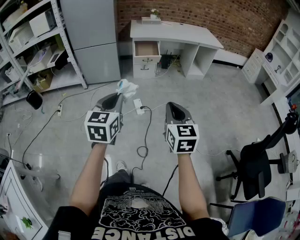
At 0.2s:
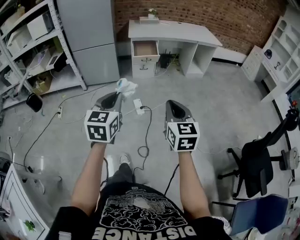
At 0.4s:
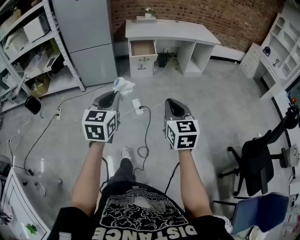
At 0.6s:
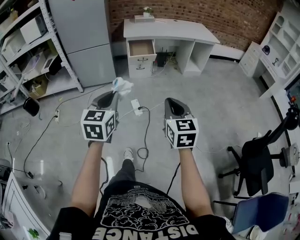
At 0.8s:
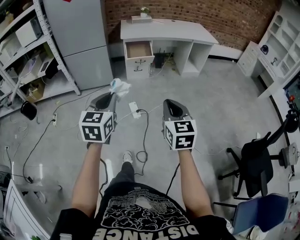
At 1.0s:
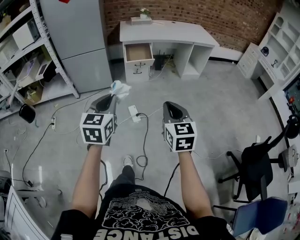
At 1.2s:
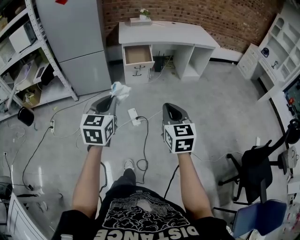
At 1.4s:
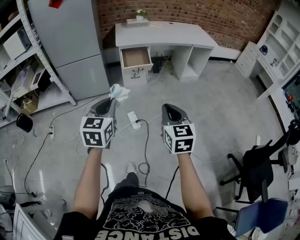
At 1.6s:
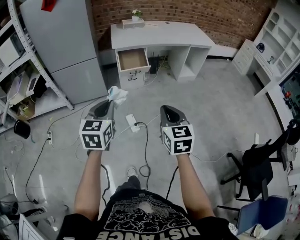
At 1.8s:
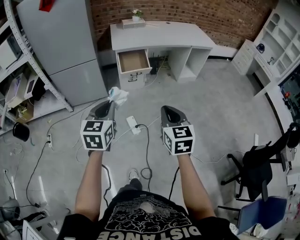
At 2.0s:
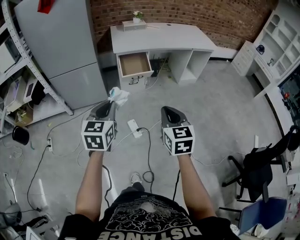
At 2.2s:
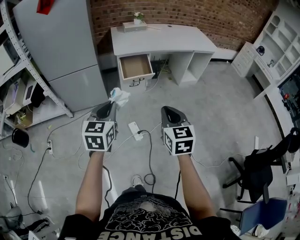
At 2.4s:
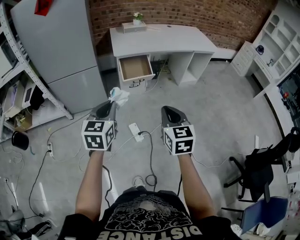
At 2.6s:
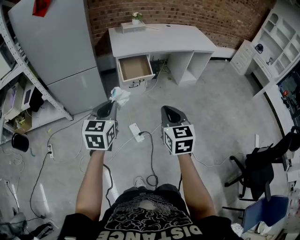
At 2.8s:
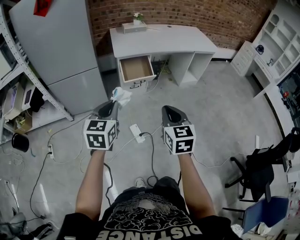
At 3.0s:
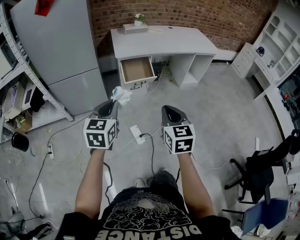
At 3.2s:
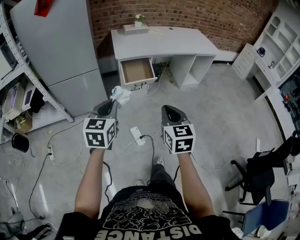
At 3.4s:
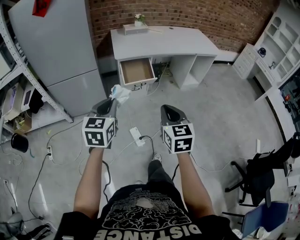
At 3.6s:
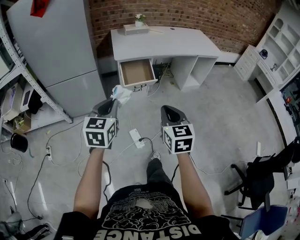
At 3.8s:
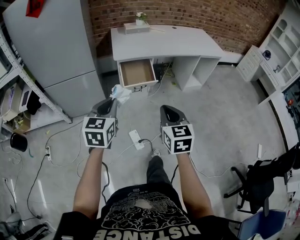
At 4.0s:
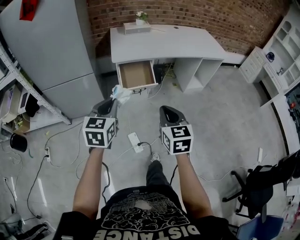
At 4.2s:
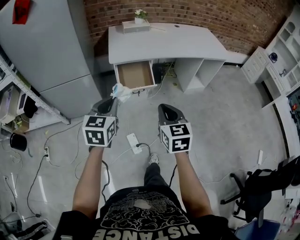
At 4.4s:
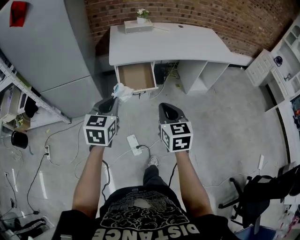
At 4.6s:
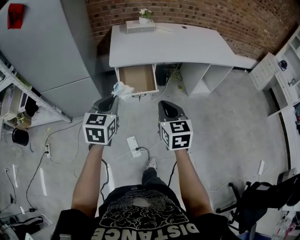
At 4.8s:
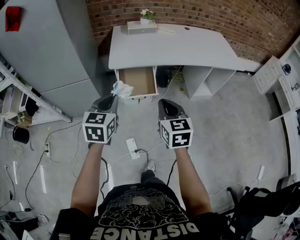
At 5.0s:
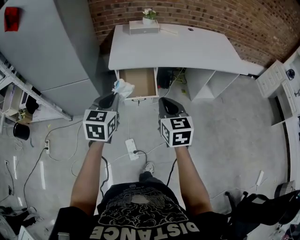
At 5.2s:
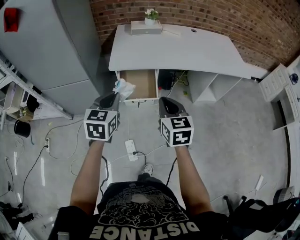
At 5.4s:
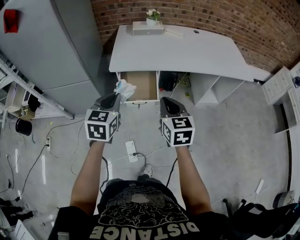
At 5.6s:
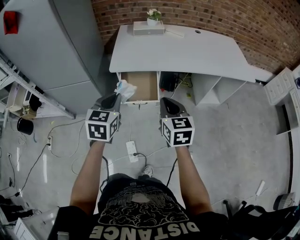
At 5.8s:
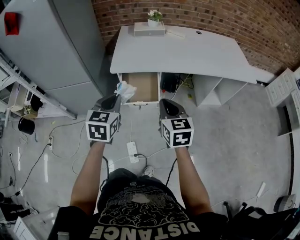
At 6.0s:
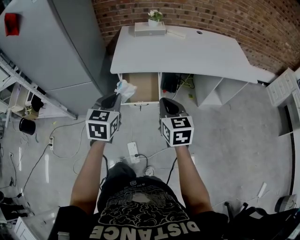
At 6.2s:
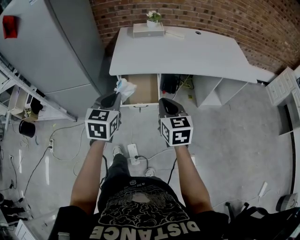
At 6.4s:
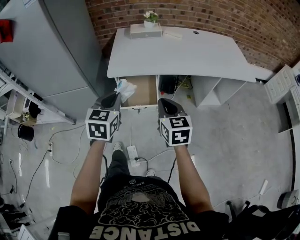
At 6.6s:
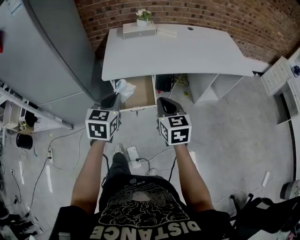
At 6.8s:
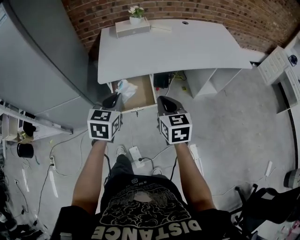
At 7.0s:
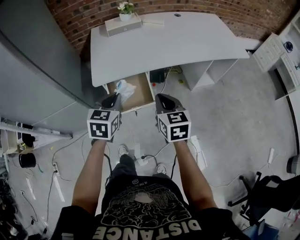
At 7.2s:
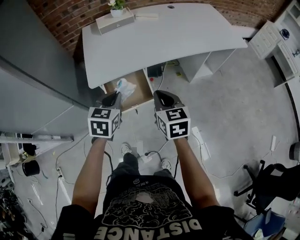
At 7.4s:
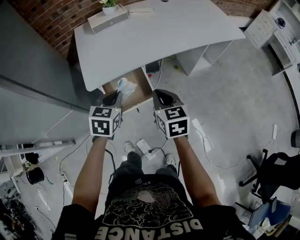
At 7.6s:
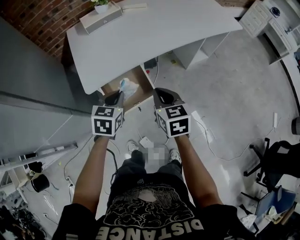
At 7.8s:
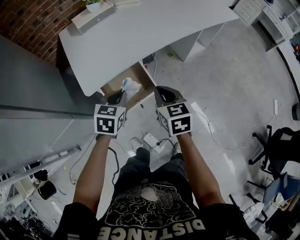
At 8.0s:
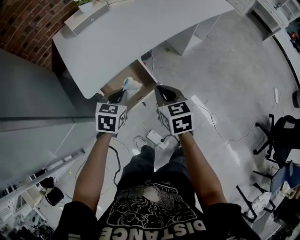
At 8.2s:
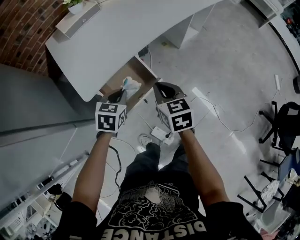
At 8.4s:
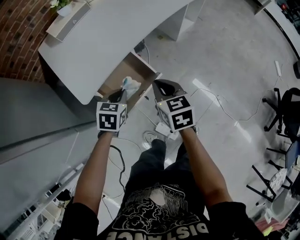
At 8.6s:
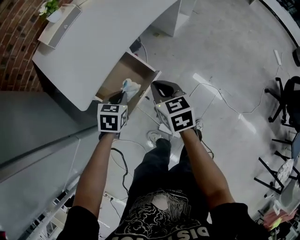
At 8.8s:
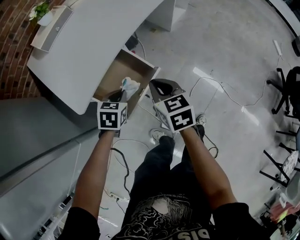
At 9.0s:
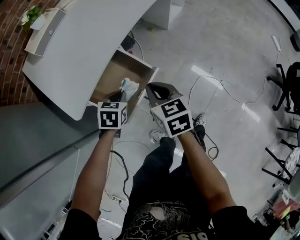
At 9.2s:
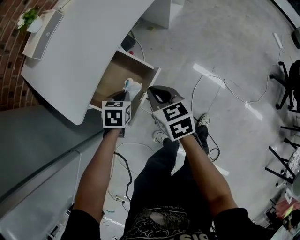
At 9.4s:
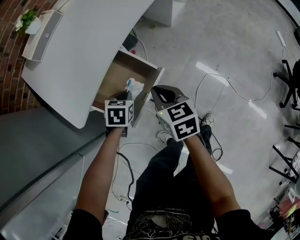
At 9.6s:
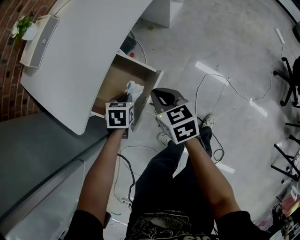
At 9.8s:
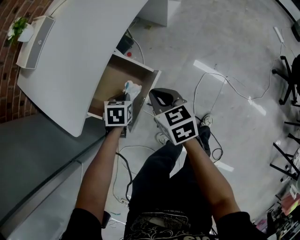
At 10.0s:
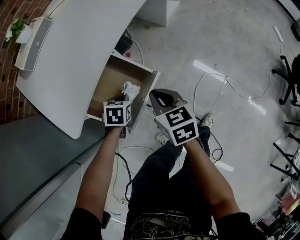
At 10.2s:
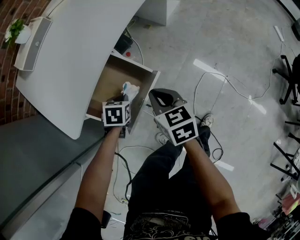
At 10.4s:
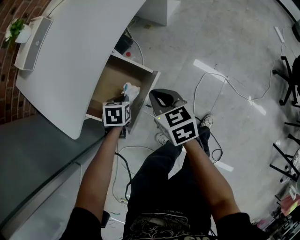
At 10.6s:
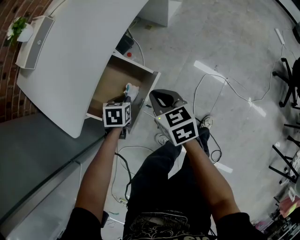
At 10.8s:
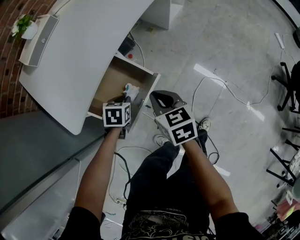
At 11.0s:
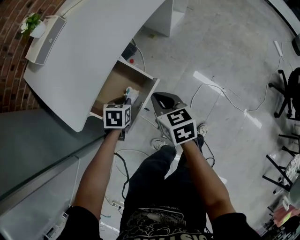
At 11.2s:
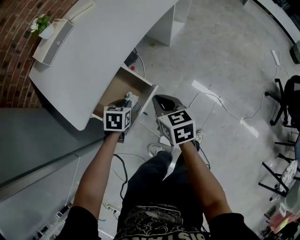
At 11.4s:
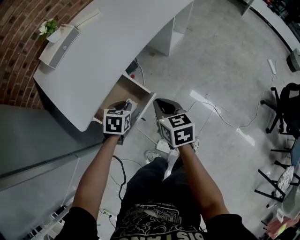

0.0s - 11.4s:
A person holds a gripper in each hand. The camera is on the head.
0.0s - 1.4s: The two grippers go roughly 20 cm forward.
1.4s - 2.8s: The grippers both shift forward and to the left by approximately 20 cm.
2.8s - 4.2s: Both grippers travel together forward, some 20 cm.
4.2s - 5.6s: The right gripper goes about 20 cm forward; the left gripper travels forward and to the right by approximately 20 cm.
5.6s - 7.2s: Both grippers travel together forward and downward, roughly 15 cm. The left gripper rotates approximately 20 degrees.
7.2s - 8.6s: The right gripper goes about 10 cm downward, and turns by roughly 30 degrees. The left gripper shifts approximately 20 cm downward, and changes its angle by some 40 degrees.
8.6s - 10.0s: The left gripper travels downward by approximately 15 cm; the right gripper goes about 10 cm downward.
10.0s - 11.4s: Both grippers travel together upward, about 10 cm.

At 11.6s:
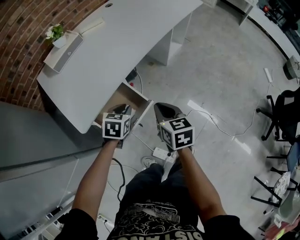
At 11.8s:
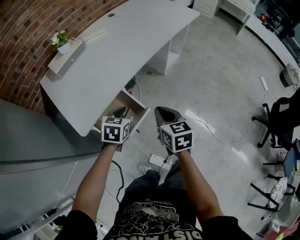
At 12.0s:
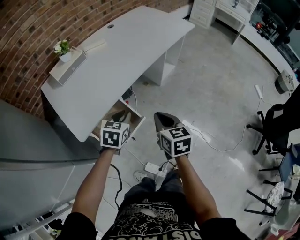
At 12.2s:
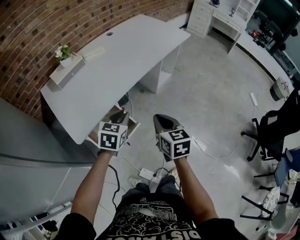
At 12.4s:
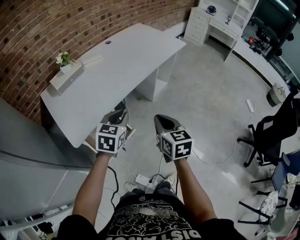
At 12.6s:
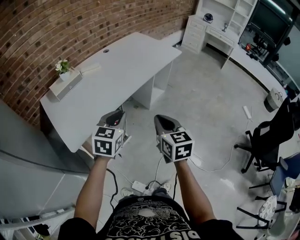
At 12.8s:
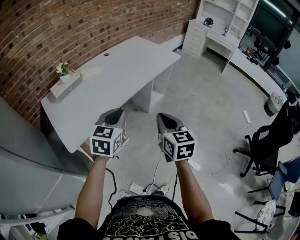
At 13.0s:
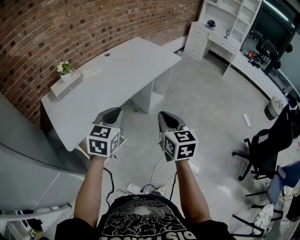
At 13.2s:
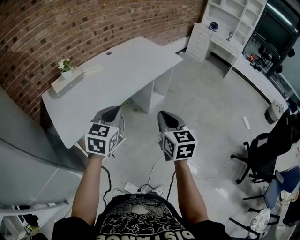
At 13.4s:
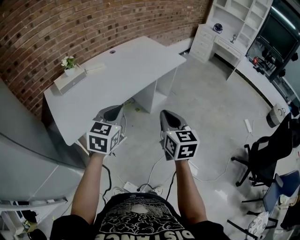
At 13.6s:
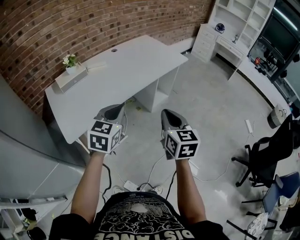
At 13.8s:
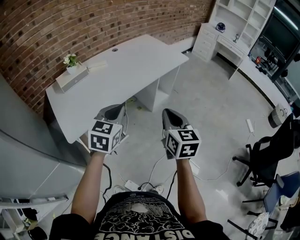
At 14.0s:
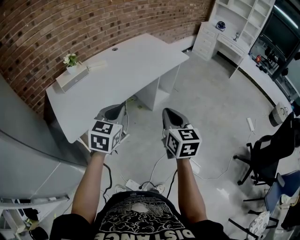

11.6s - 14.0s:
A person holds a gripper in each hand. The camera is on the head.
11.6s - 12.8s: Both grippers move upward and to the right, roughly 30 cm. The left gripper changes its angle by some 30 degrees.
12.8s - 14.0s: The grippers stay close to where they were, moving slightly.

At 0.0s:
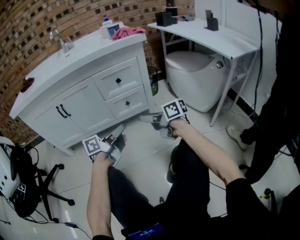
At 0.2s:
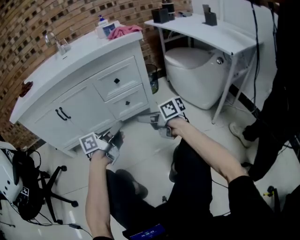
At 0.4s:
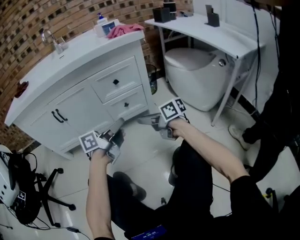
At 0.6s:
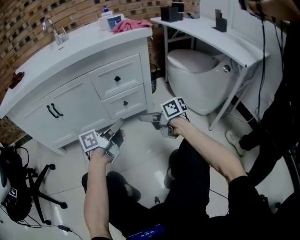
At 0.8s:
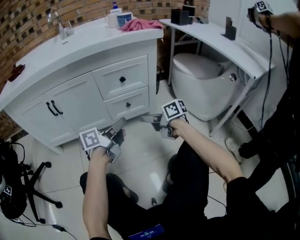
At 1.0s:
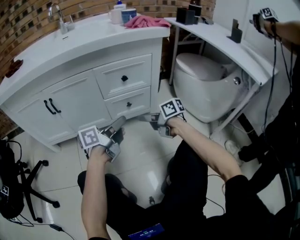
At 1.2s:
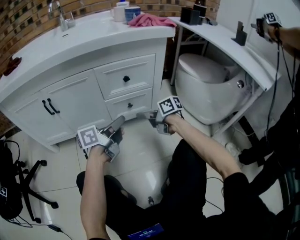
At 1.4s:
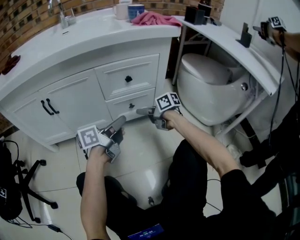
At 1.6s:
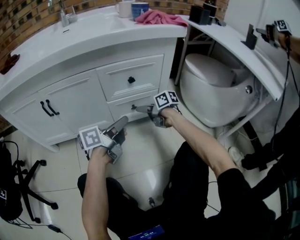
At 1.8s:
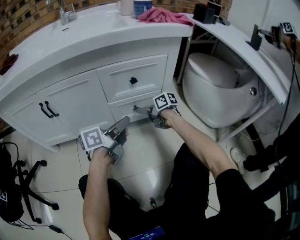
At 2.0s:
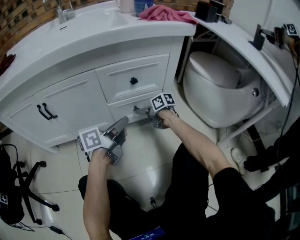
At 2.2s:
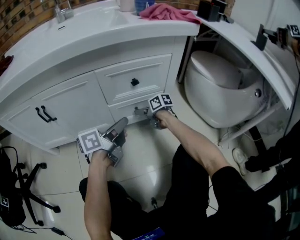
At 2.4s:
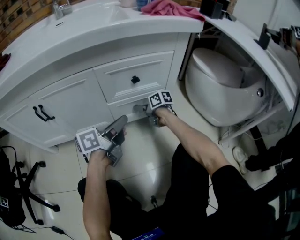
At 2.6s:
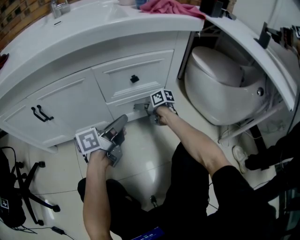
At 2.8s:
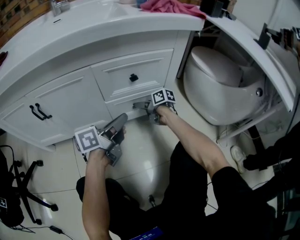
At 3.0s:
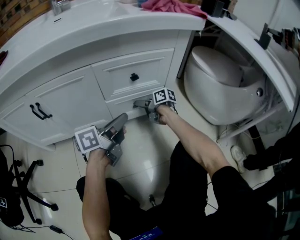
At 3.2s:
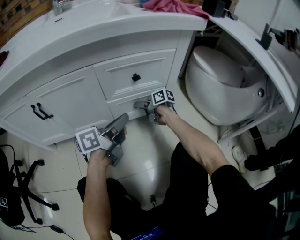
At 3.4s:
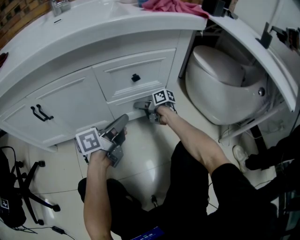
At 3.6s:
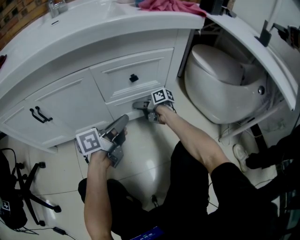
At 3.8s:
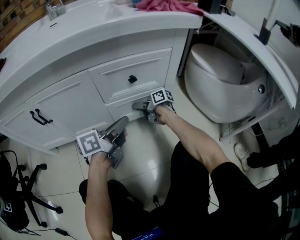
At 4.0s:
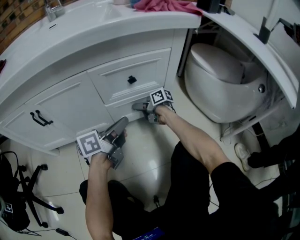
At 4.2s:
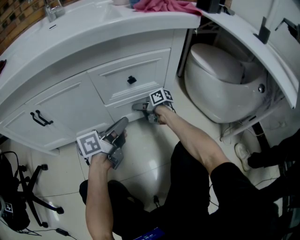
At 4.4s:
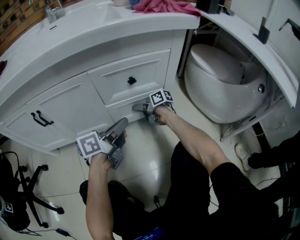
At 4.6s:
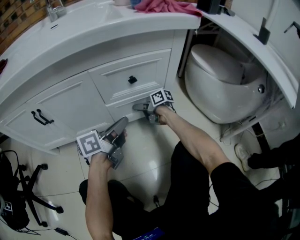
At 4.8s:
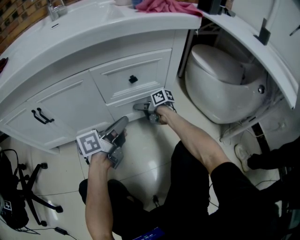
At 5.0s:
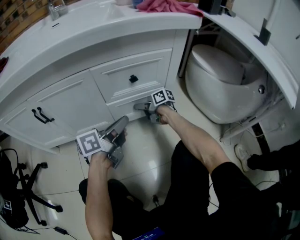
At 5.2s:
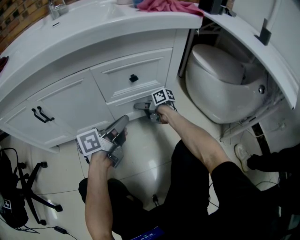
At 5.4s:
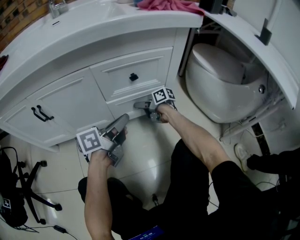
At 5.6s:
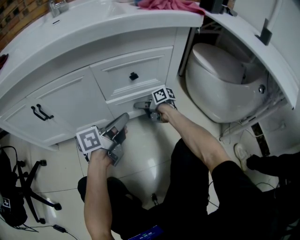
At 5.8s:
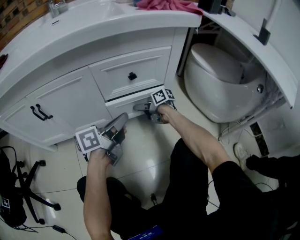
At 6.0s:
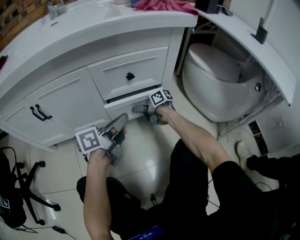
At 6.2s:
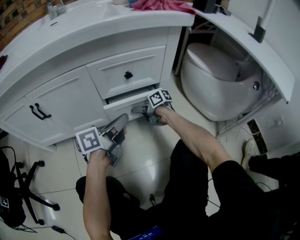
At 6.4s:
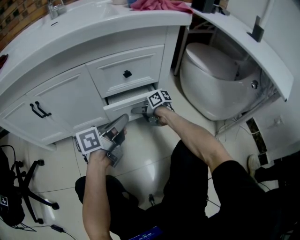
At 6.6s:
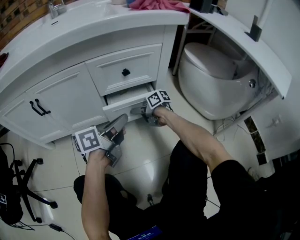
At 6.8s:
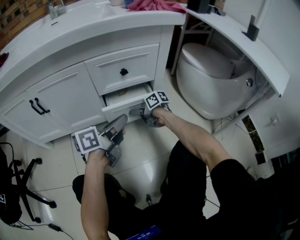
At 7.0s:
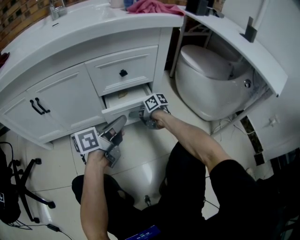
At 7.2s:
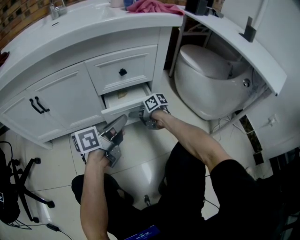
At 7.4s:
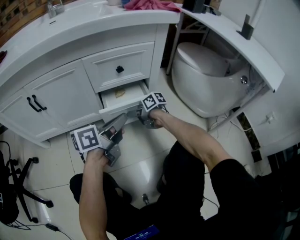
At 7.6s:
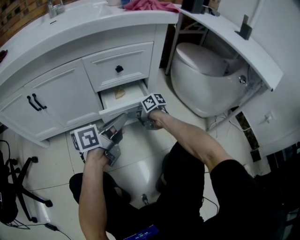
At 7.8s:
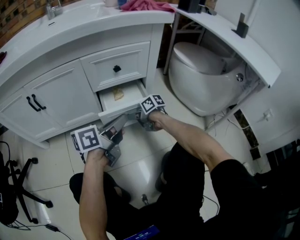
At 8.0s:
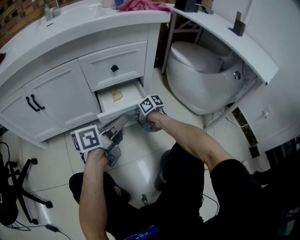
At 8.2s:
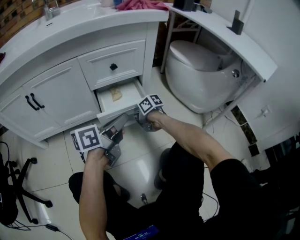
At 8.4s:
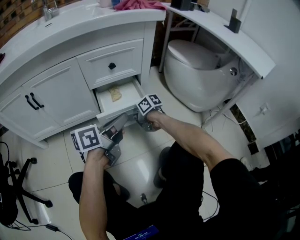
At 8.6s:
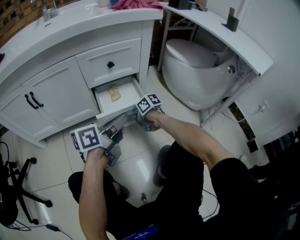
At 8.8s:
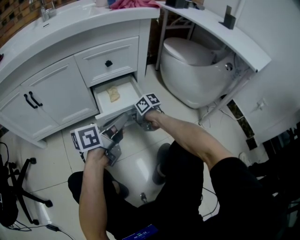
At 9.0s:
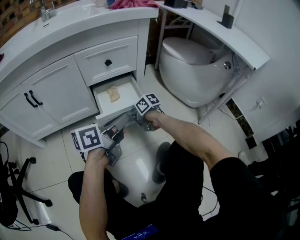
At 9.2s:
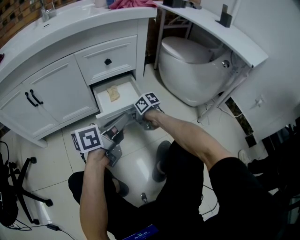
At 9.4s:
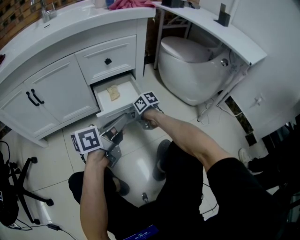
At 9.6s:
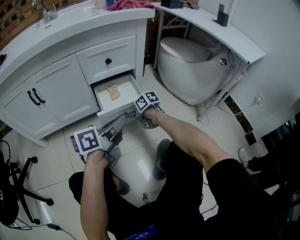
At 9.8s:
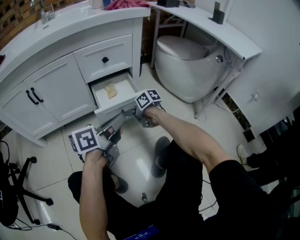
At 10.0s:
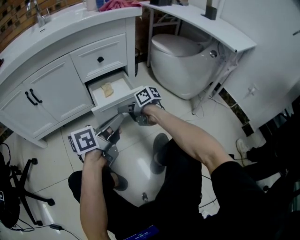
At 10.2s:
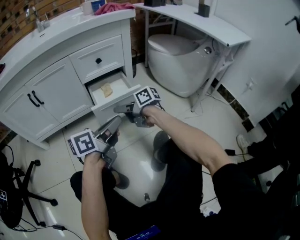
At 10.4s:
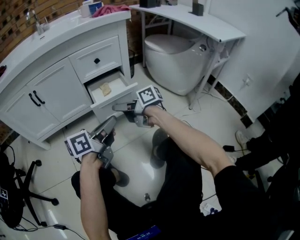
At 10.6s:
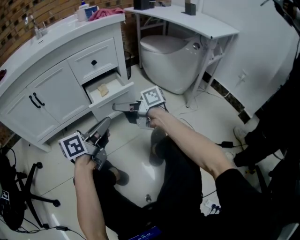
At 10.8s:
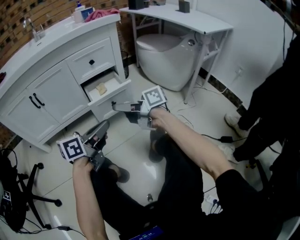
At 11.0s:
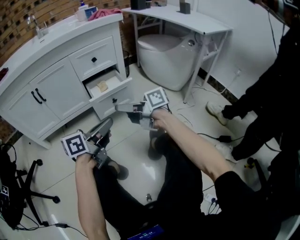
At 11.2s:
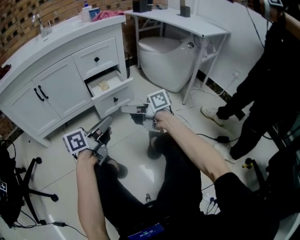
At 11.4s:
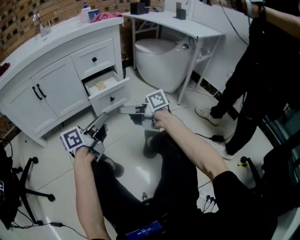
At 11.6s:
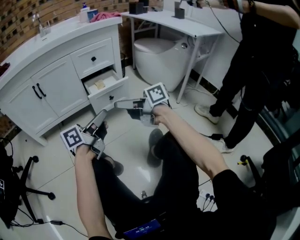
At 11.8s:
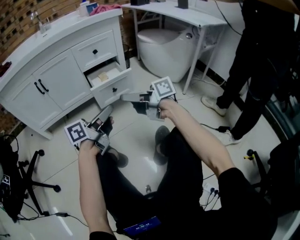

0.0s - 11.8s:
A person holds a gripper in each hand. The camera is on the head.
0.0s - 1.4s: The left gripper goes roughly 15 cm forward; the right gripper heads forward and downward, covering approximately 25 cm.
1.4s - 3.0s: The left gripper is displaced forward by approximately 5 cm; the right gripper shifts some 15 cm forward and downward.
3.0s - 6.0s: The grippers move only a little.
6.0s - 7.4s: The grippers both shift backward by about 5 cm.
7.4s - 8.8s: The left gripper ends up approximately 5 cm from where it was, while the right gripper changes place by roughly 10 cm.
8.8s - 10.4s: The left gripper changes place by roughly 10 cm; the right gripper is displaced upward by about 20 cm, and tilts its fingers approximately 30 degrees upward.
10.4s - 11.8s: The right gripper is displaced backward and upward by some 20 cm; the left gripper is displaced backward by about 10 cm.
